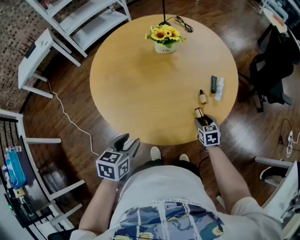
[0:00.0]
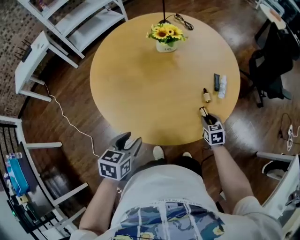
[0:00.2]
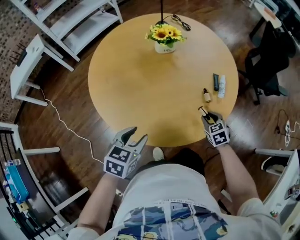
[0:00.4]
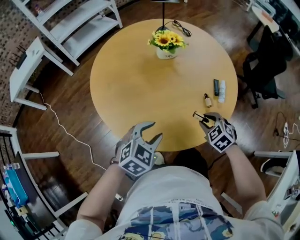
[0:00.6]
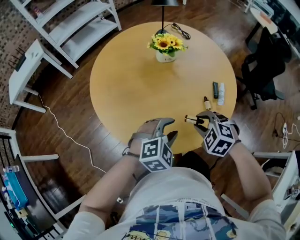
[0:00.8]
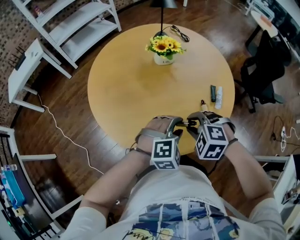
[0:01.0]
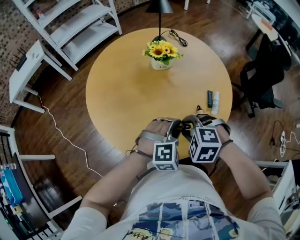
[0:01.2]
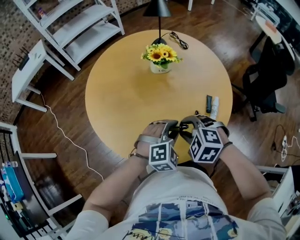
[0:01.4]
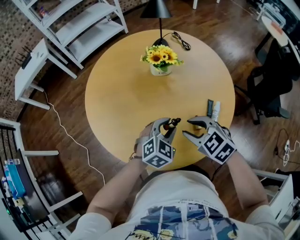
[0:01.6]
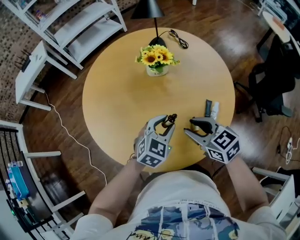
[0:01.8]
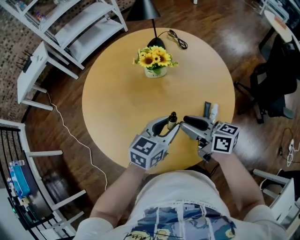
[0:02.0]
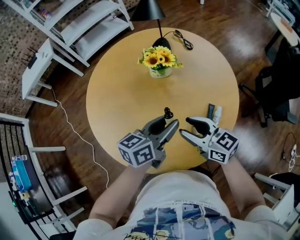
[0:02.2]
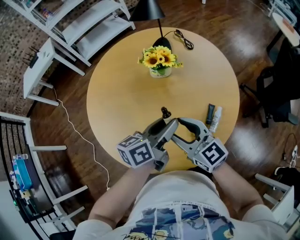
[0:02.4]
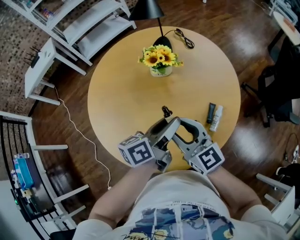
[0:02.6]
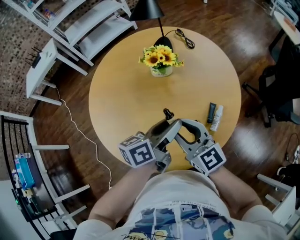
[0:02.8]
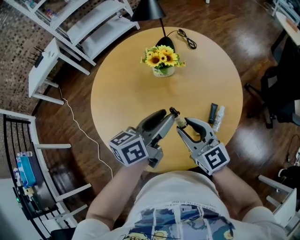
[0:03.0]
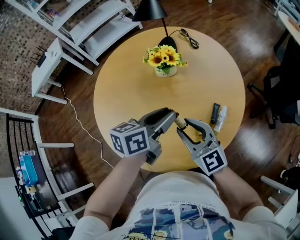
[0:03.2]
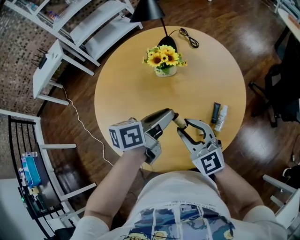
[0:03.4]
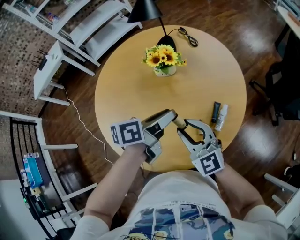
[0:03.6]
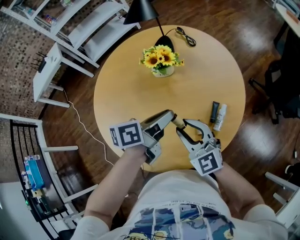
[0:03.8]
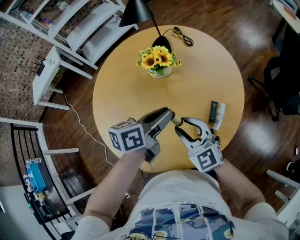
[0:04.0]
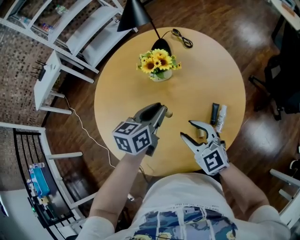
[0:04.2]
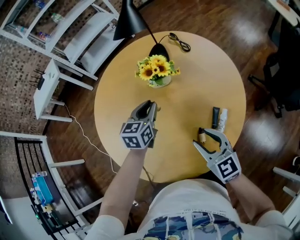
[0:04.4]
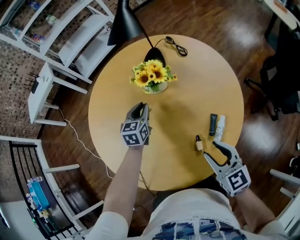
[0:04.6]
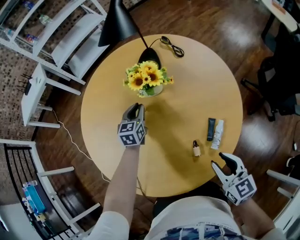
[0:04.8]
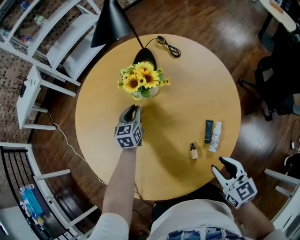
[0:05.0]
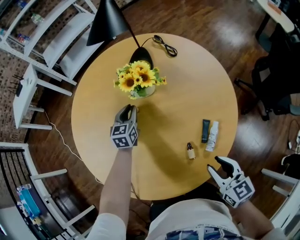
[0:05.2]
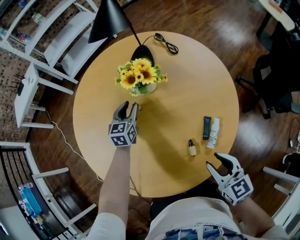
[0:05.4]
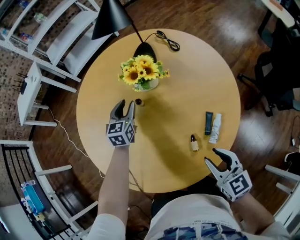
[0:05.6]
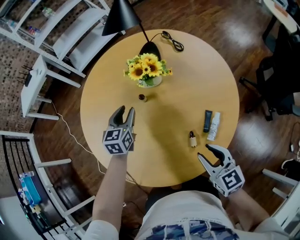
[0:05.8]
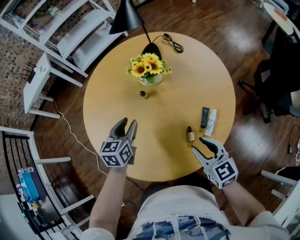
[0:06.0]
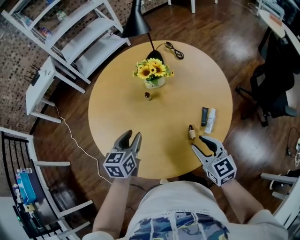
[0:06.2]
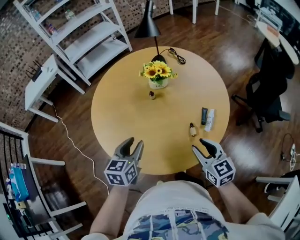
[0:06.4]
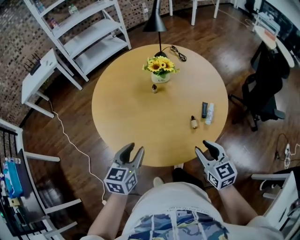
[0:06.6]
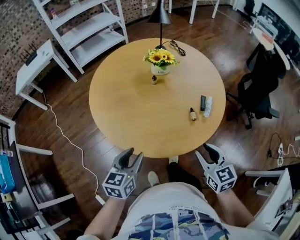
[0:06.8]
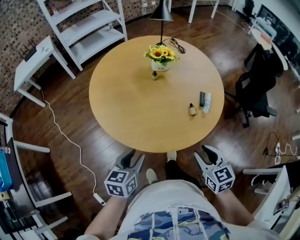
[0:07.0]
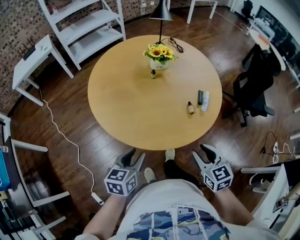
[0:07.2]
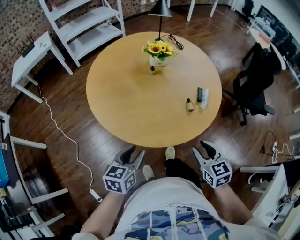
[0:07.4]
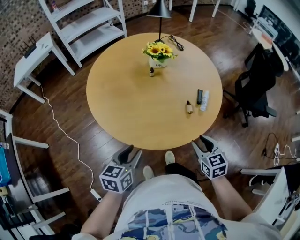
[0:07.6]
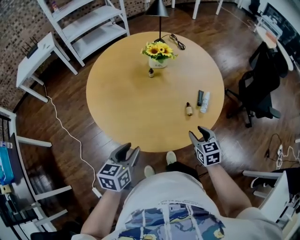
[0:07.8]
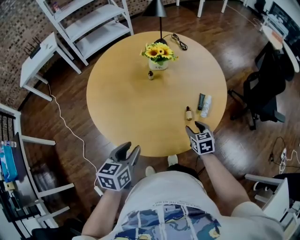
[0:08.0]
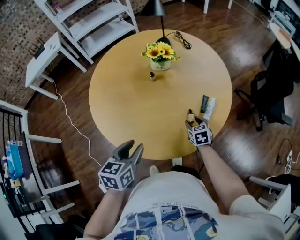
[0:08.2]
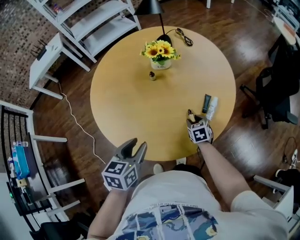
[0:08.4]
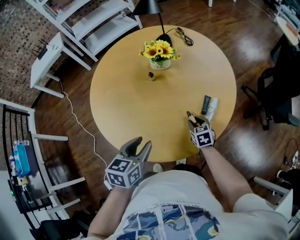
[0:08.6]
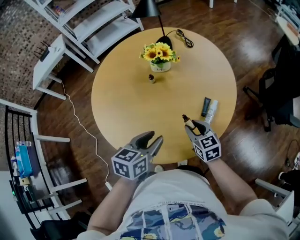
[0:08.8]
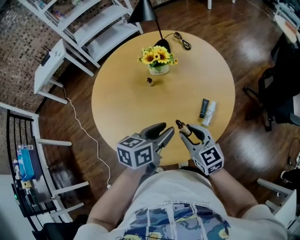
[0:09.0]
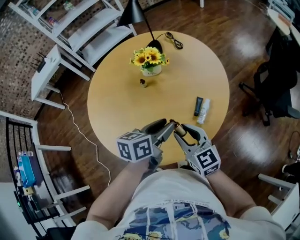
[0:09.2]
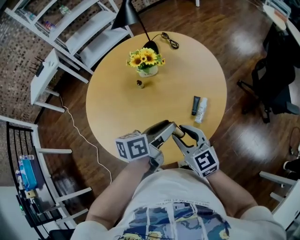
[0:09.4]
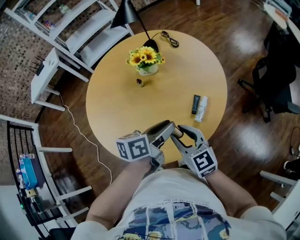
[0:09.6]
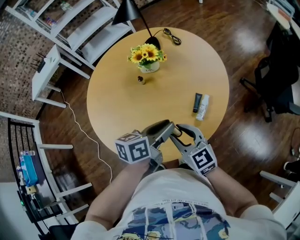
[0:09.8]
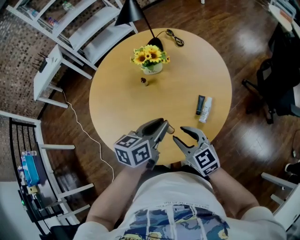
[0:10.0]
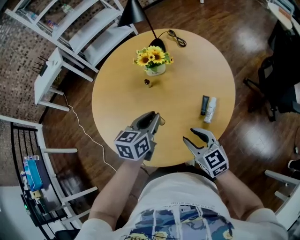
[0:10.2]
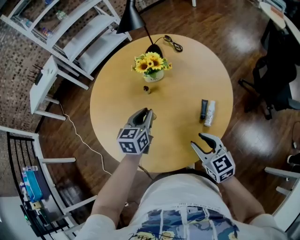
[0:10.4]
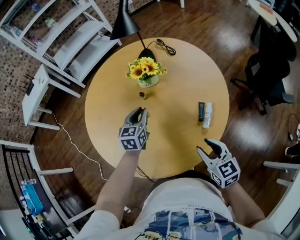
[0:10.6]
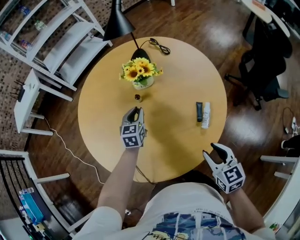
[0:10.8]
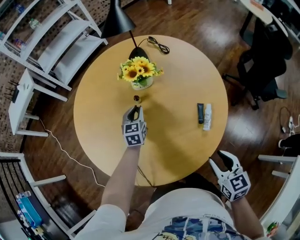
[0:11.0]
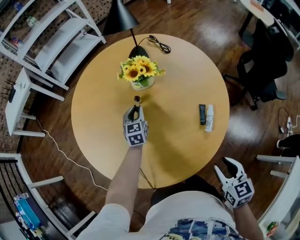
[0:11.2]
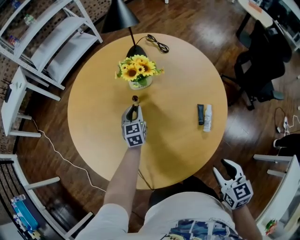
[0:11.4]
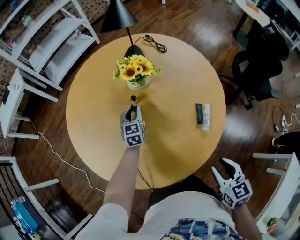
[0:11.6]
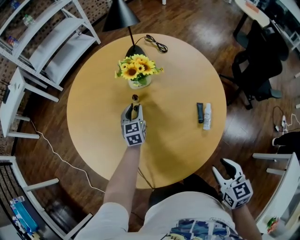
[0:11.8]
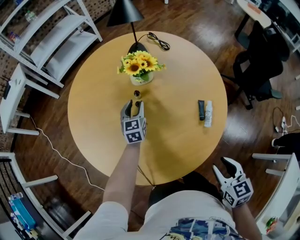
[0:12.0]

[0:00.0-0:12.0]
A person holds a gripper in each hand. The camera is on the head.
0:00.0 to 0:01.6: The right gripper moves upward and to the left, approximately 25 cm, and swivels approximately 50 degrees; the left gripper moves forward and to the right, approximately 25 cm, and twists approximately 40 degrees clockwise, seen from behind.
0:01.6 to 0:03.0: The right gripper changes place by some 5 cm, and points its fingers about 40 degrees further upward. Meanwhile the left gripper shifts about 15 cm upward and forward, and rolls counterclockwise, seen from behind, by roughly 60 degrees.
0:03.0 to 0:04.4: The right gripper moves to the right, about 5 cm. Meanwhile the left gripper moves forward and downward, roughly 15 cm, and rotates roughly 40 degrees.
0:04.4 to 0:06.0: The left gripper moves to the left and backward, about 10 cm; the right gripper travels to the right and back again, approximately 10 cm each way.
0:06.0 to 0:07.6: The right gripper heads backward, covering roughly 20 cm, while the left gripper heads backward, covering approximately 35 cm.
0:07.6 to 0:09.0: The left gripper moves to the right and forward, approximately 30 cm, while the right gripper shifts some 15 cm forward, and changes its angle by about 30 degrees.
0:09.0 to 0:10.4: The left gripper goes roughly 15 cm forward and to the left, and changes its angle by some 20 degrees.
0:10.4 to 0:12.0: The right gripper is displaced backward by about 5 cm, and changes its angle by approximately 30 degrees. Meanwhile the left gripper is displaced forward, downward and to the left by some 20 cm, and opens.

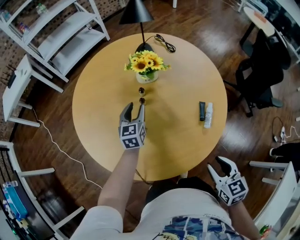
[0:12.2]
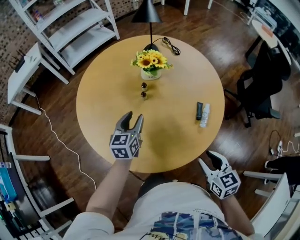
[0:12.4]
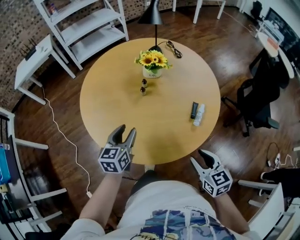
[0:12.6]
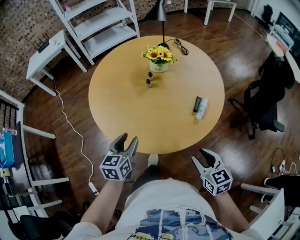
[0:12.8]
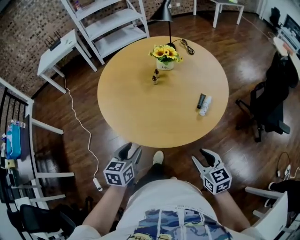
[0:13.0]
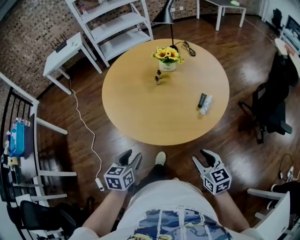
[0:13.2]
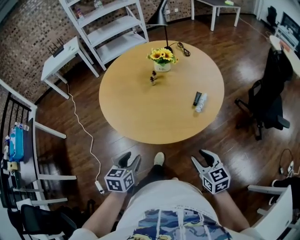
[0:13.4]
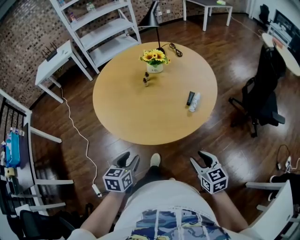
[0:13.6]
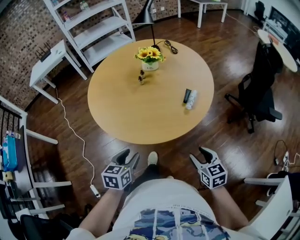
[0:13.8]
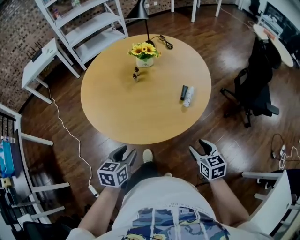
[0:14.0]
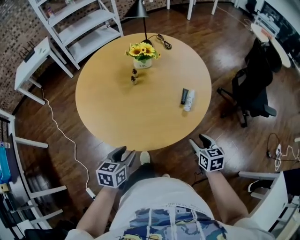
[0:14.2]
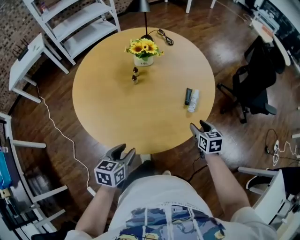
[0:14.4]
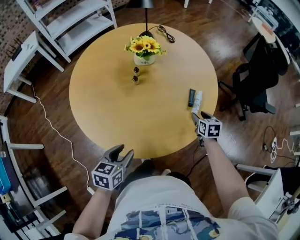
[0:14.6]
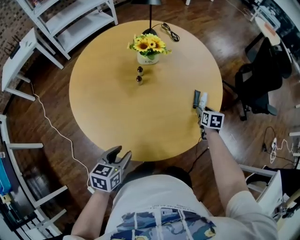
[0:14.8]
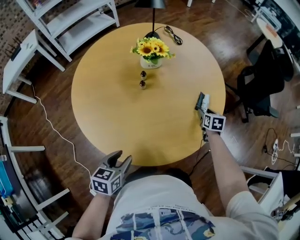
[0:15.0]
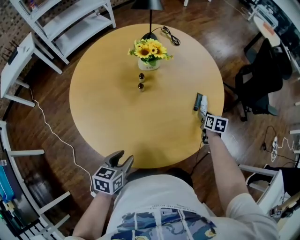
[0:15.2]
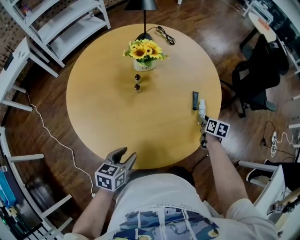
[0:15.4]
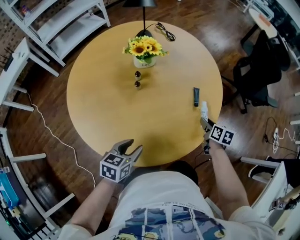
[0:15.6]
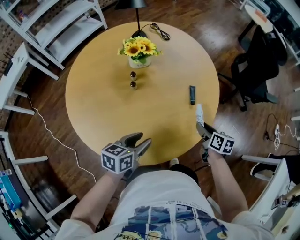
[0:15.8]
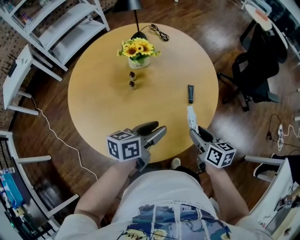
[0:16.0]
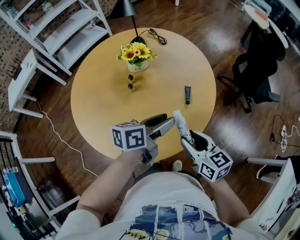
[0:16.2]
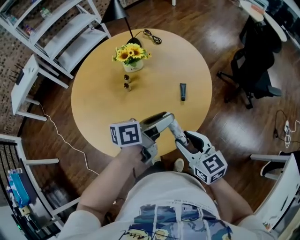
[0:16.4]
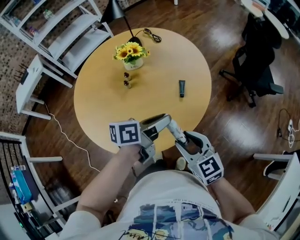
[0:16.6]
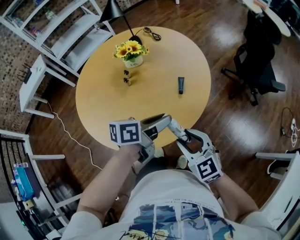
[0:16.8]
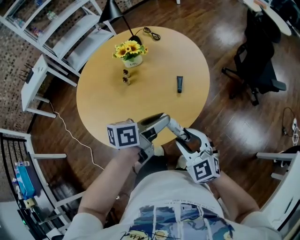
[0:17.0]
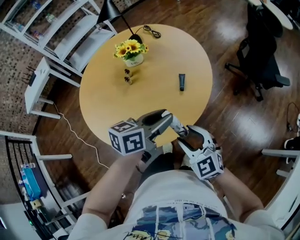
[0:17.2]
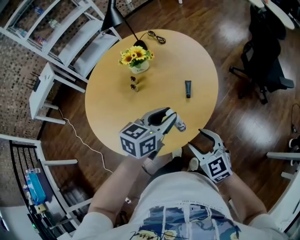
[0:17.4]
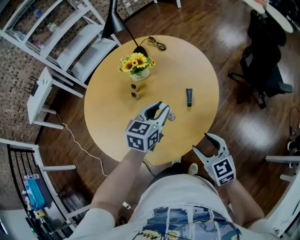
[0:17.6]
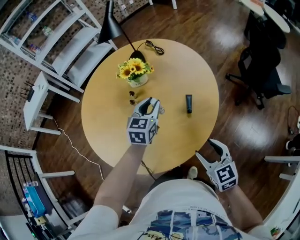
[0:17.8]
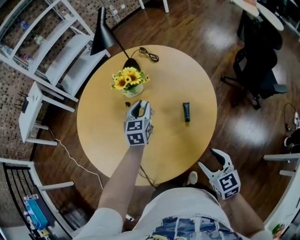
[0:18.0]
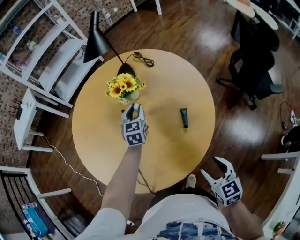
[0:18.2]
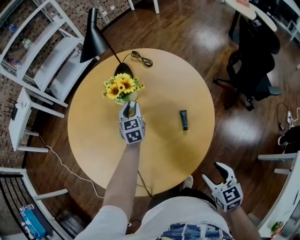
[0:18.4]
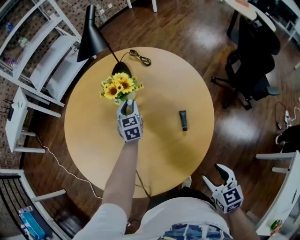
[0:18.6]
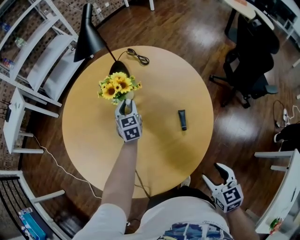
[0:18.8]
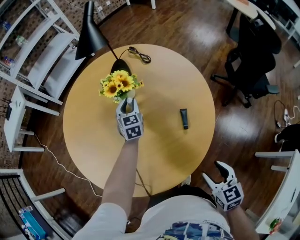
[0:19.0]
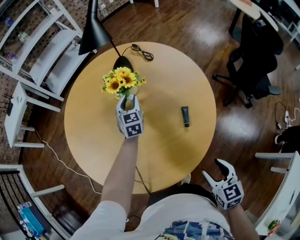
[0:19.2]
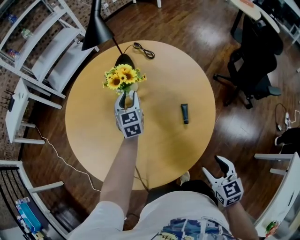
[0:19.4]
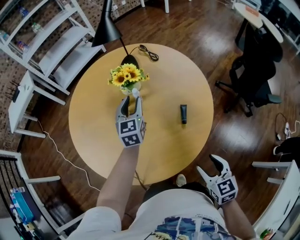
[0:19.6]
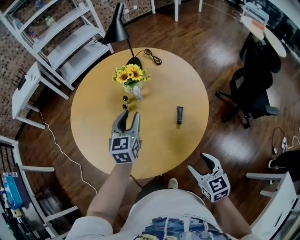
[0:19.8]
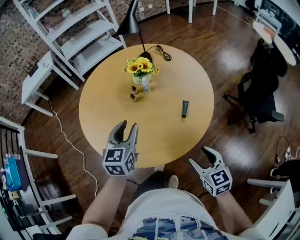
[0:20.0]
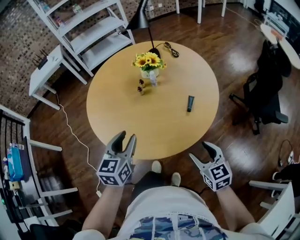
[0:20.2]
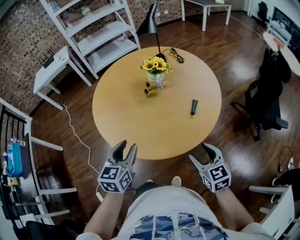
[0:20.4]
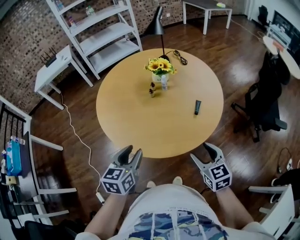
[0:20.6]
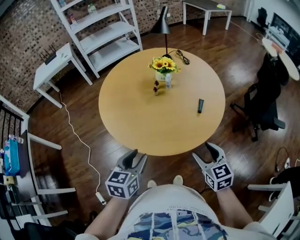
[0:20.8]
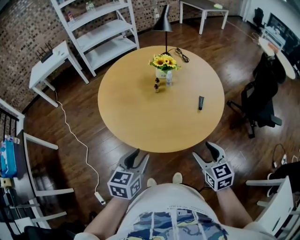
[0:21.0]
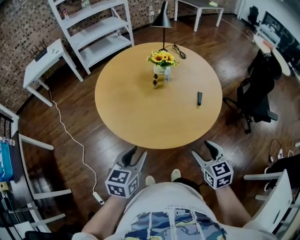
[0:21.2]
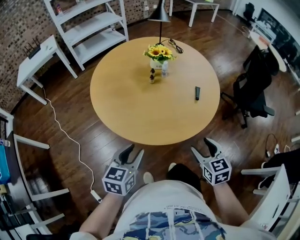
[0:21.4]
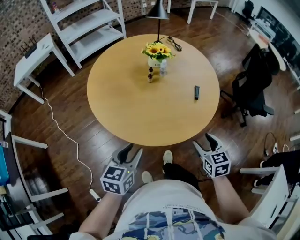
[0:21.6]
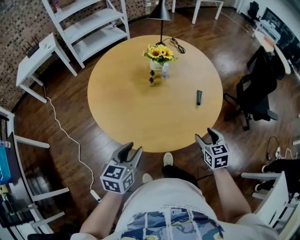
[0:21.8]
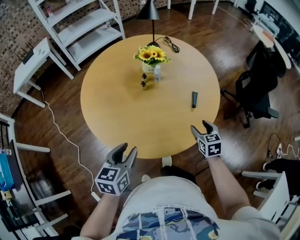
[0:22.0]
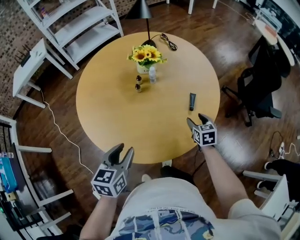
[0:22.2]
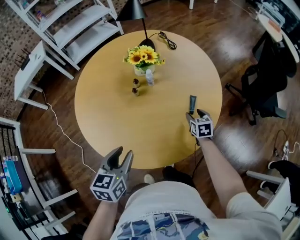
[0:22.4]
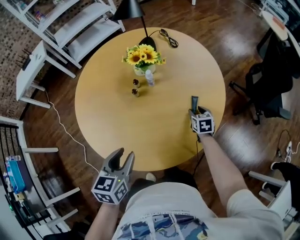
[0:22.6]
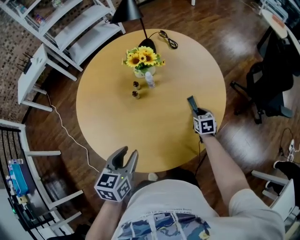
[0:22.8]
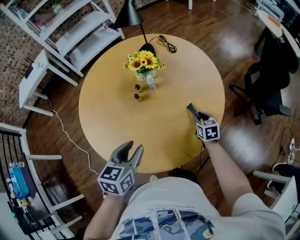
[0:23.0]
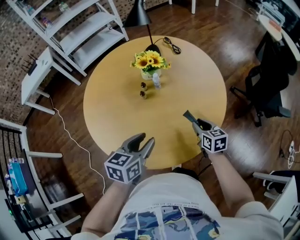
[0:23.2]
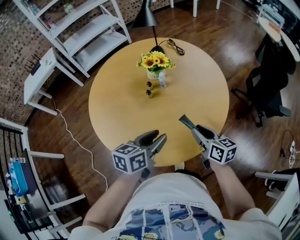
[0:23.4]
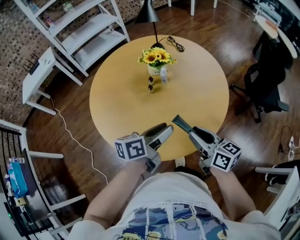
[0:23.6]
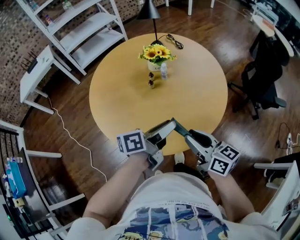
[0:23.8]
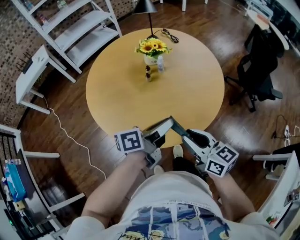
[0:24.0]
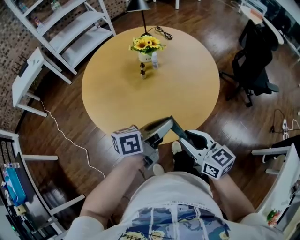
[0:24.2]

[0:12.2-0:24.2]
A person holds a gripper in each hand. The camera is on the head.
0:12.2 to 0:13.8: The right gripper travels backward by about 20 cm; the left gripper is displaced backward by about 50 cm, and rotates some 20 degrees.
0:13.8 to 0:15.2: The left gripper shifts by some 25 cm; the right gripper moves some 40 cm, and swivels some 40 degrees.
0:15.2 to 0:16.6: The right gripper shifts some 35 cm backward and upward, and swivels about 50 degrees. Meanwhile the left gripper moves to the right, upward and forward, about 30 cm, and rotates approximately 40 degrees.
0:16.6 to 0:18.2: The left gripper shifts approximately 30 cm forward and to the left, and changes its angle by some 70 degrees, while the right gripper heads to the right, forward and downward, covering some 10 cm.
0:18.2 to 0:19.8: The left gripper moves backward and upward, some 20 cm.
0:19.8 to 0:21.2: The left gripper goes roughly 40 cm backward and to the left, while the right gripper moves to the left and backward, roughly 20 cm.
0:21.2 to 0:22.6: The left gripper moves forward, some 20 cm. Meanwhile the right gripper is displaced forward and downward by approximately 40 cm, and changes its angle by some 20 degrees.
0:22.6 to 0:24.2: The right gripper is displaced backward, upward and to the left by about 50 cm, and tilts its fingers some 30 degrees upward, while the left gripper shifts approximately 10 cm backward, to the right and upward, angles its fingers upward, by approximately 30 degrees, and closes up.
